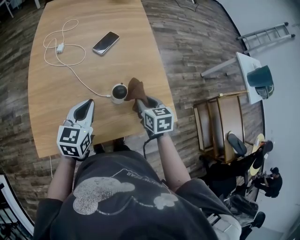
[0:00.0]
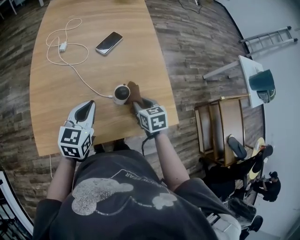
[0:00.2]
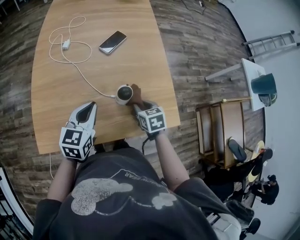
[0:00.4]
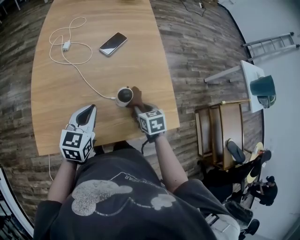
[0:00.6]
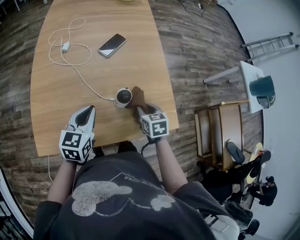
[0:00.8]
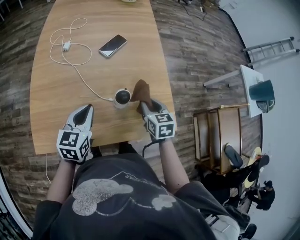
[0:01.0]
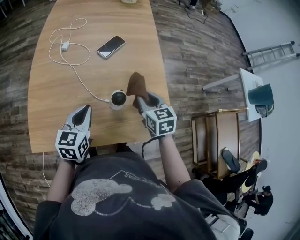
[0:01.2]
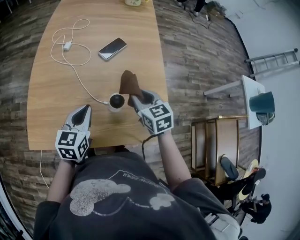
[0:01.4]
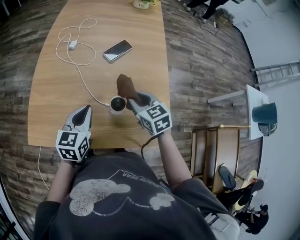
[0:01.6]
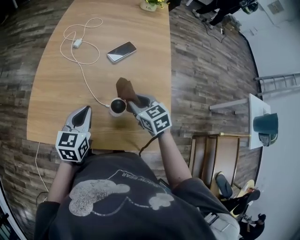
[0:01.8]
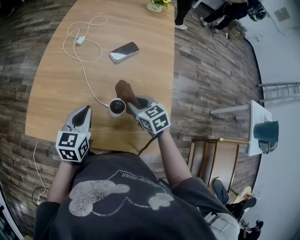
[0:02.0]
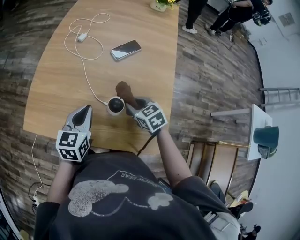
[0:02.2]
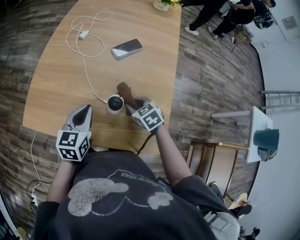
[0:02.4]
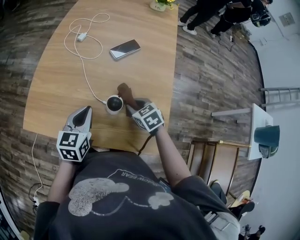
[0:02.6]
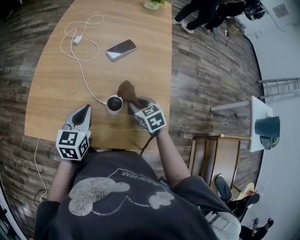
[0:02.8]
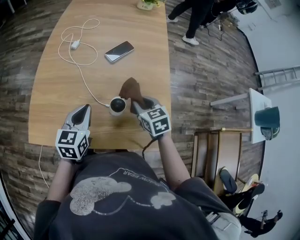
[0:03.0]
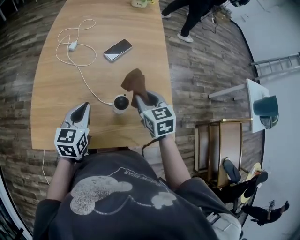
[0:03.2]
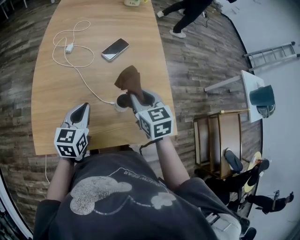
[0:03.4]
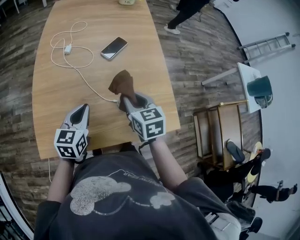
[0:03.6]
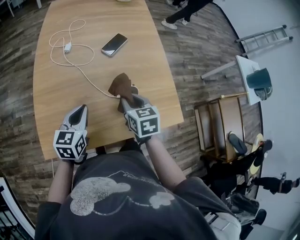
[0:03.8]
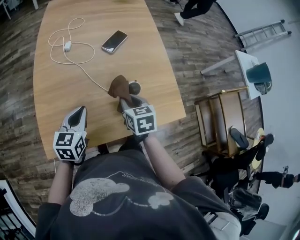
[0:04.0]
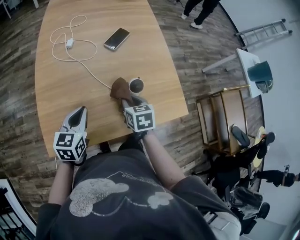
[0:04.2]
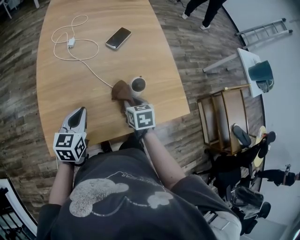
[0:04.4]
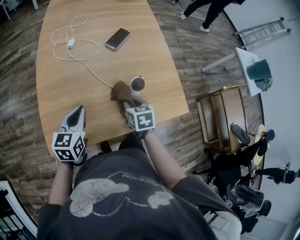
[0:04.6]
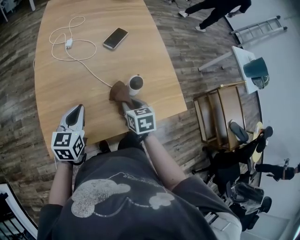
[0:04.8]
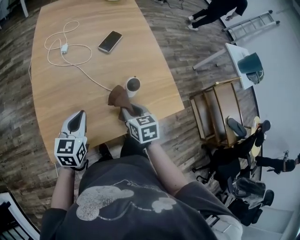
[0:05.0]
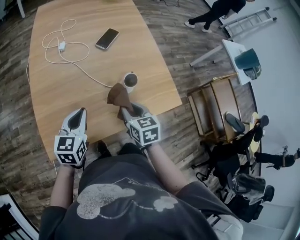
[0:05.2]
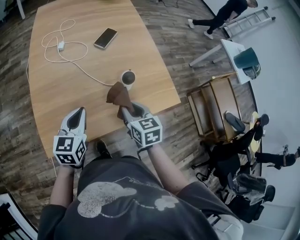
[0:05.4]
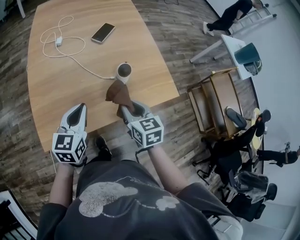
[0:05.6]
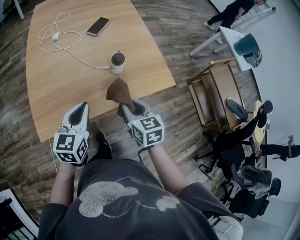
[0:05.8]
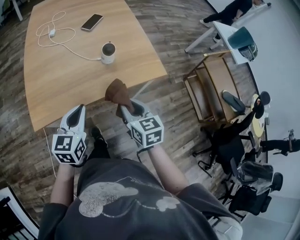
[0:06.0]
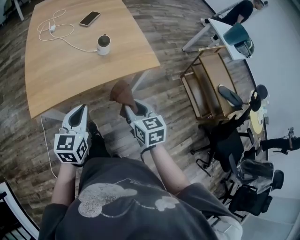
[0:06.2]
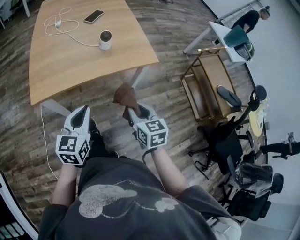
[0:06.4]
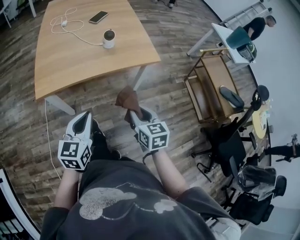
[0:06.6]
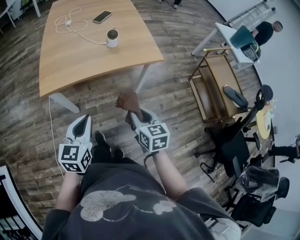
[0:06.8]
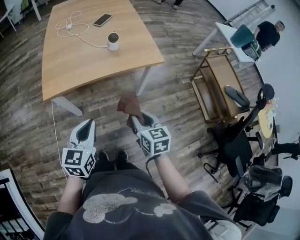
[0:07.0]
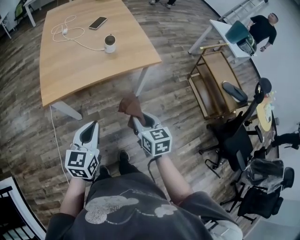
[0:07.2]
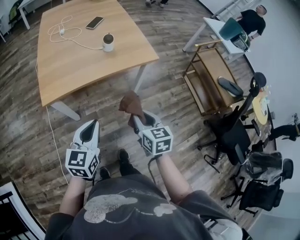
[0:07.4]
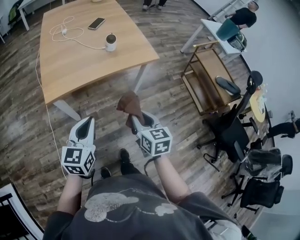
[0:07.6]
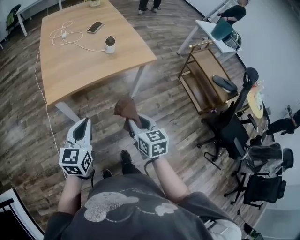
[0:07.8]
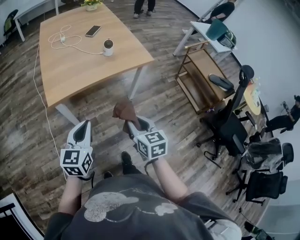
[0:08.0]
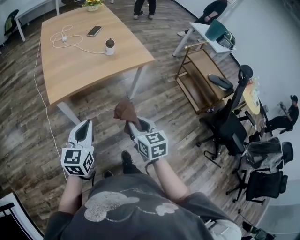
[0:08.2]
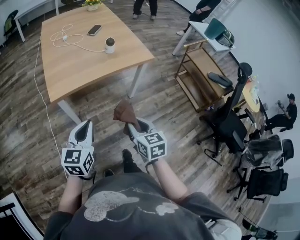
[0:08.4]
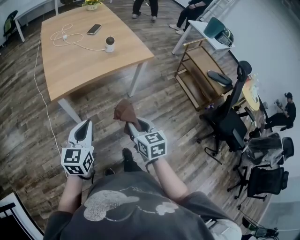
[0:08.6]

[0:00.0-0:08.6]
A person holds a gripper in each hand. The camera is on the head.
0:00.0 to 0:01.4: The right gripper travels forward by about 5 cm, and turns by about 20 degrees.
0:01.4 to 0:02.8: The right gripper travels downward by roughly 10 cm.
0:02.8 to 0:04.4: The right gripper goes upward and returns, roughly 15 cm each way, and turns by some 40 degrees, while the left gripper changes place by approximately 15 cm.
0:04.4 to 0:05.8: The right gripper moves backward and upward, about 15 cm, while the left gripper moves backward and to the right, about 10 cm.
0:05.8 to 0:07.2: Both grippers move backward, about 25 cm.
0:07.2 to 0:08.6: The right gripper heads backward and to the left, covering some 15 cm; the left gripper moves to the left and backward, some 10 cm.

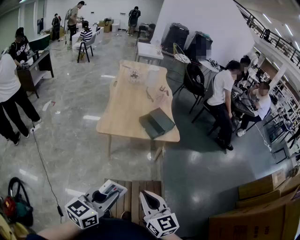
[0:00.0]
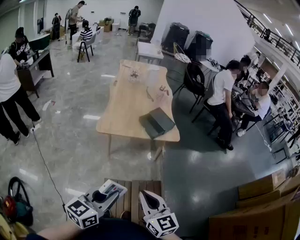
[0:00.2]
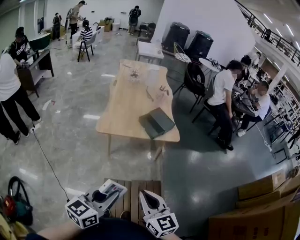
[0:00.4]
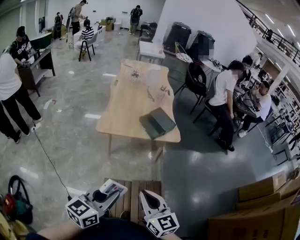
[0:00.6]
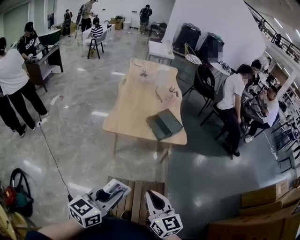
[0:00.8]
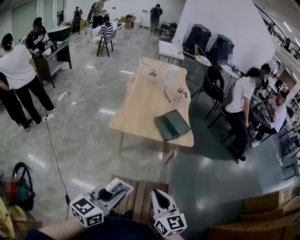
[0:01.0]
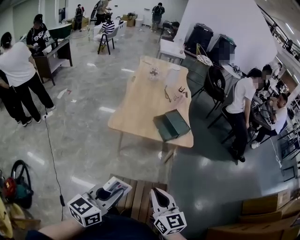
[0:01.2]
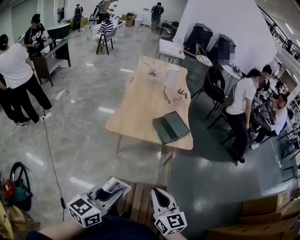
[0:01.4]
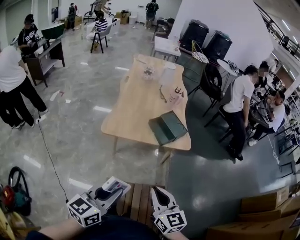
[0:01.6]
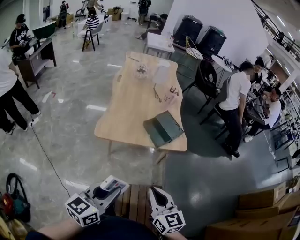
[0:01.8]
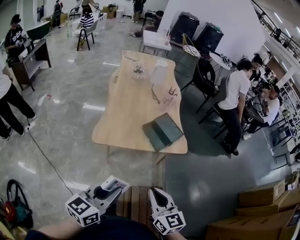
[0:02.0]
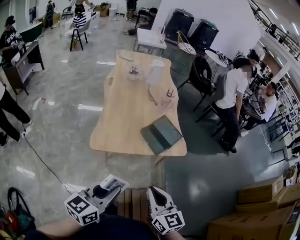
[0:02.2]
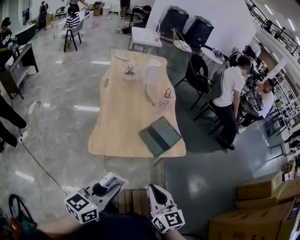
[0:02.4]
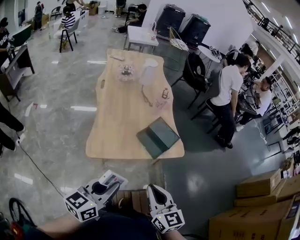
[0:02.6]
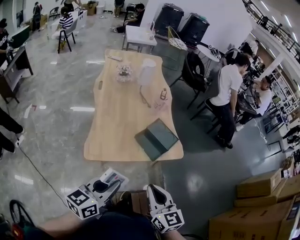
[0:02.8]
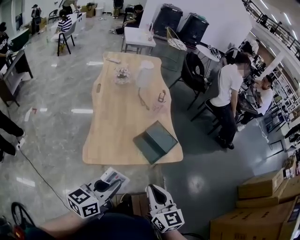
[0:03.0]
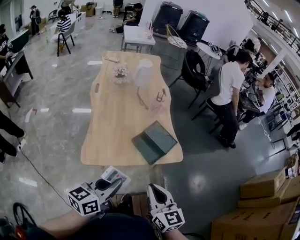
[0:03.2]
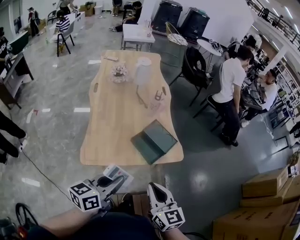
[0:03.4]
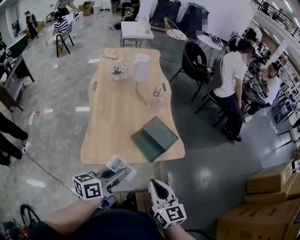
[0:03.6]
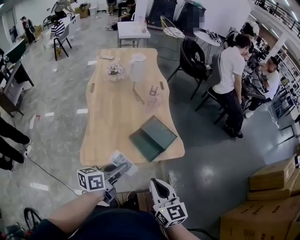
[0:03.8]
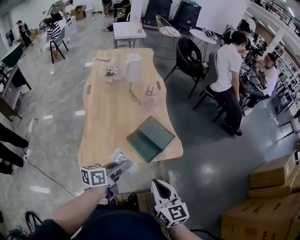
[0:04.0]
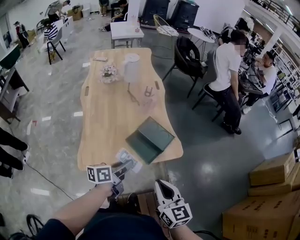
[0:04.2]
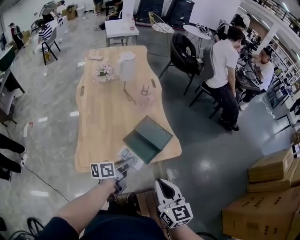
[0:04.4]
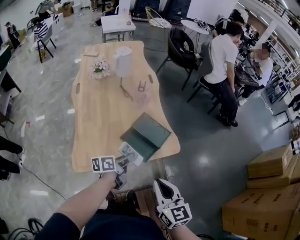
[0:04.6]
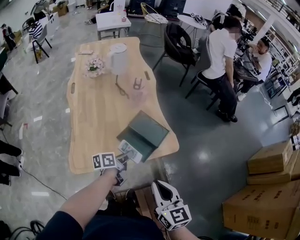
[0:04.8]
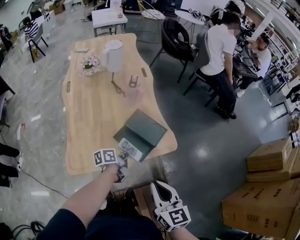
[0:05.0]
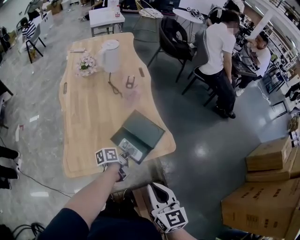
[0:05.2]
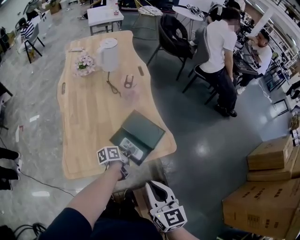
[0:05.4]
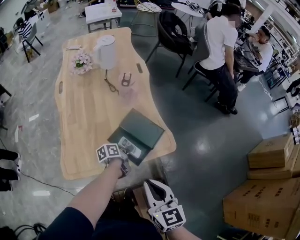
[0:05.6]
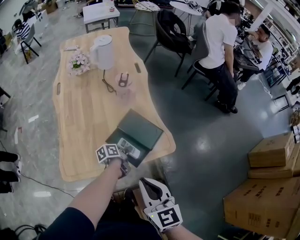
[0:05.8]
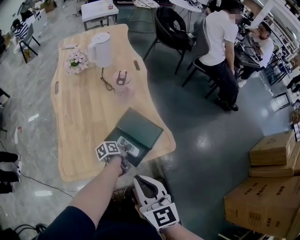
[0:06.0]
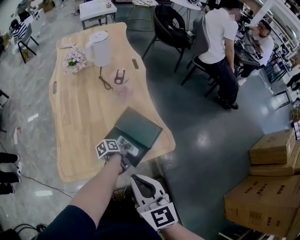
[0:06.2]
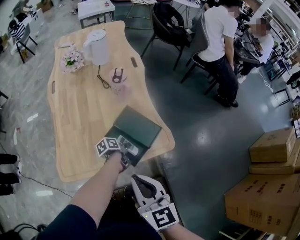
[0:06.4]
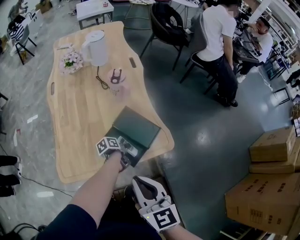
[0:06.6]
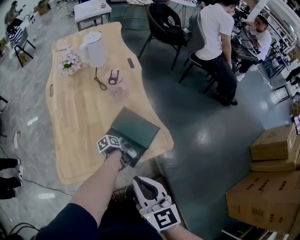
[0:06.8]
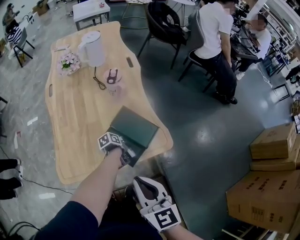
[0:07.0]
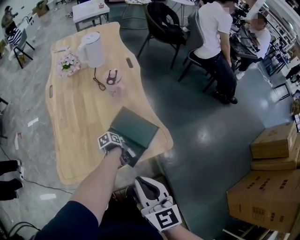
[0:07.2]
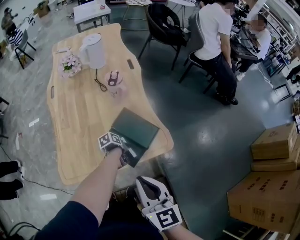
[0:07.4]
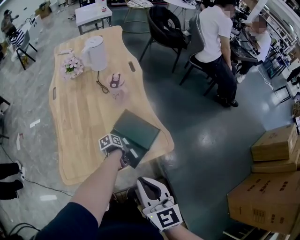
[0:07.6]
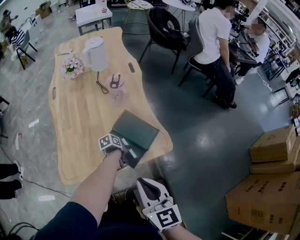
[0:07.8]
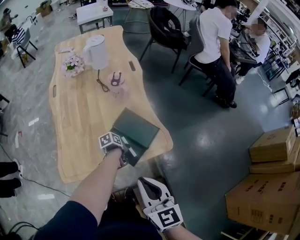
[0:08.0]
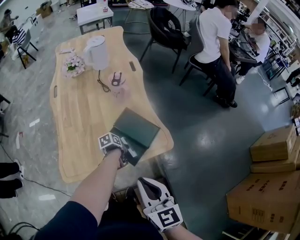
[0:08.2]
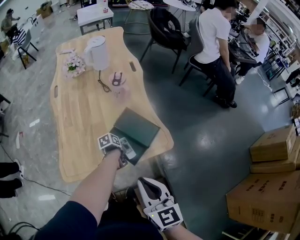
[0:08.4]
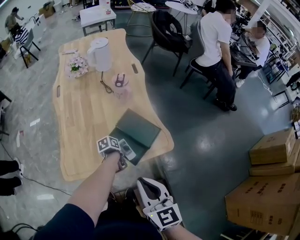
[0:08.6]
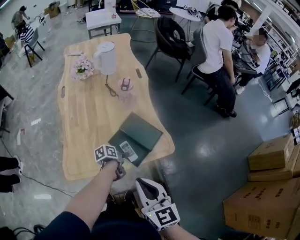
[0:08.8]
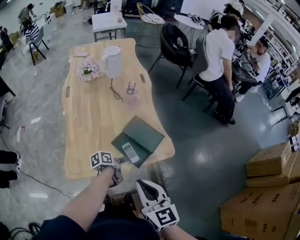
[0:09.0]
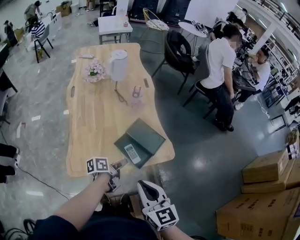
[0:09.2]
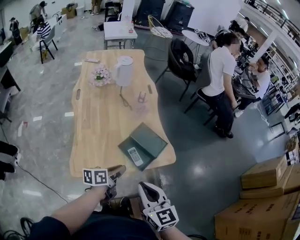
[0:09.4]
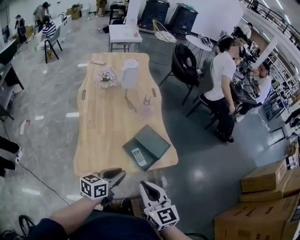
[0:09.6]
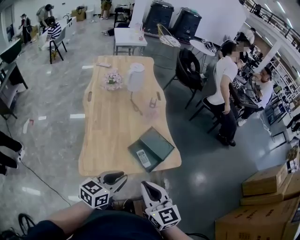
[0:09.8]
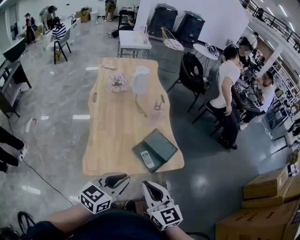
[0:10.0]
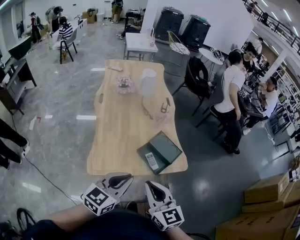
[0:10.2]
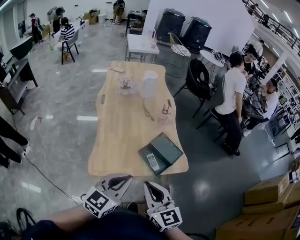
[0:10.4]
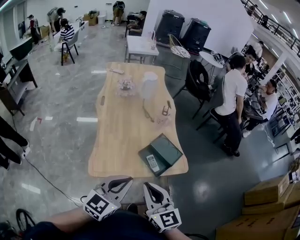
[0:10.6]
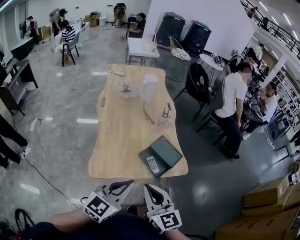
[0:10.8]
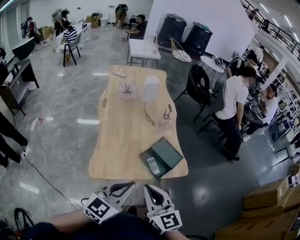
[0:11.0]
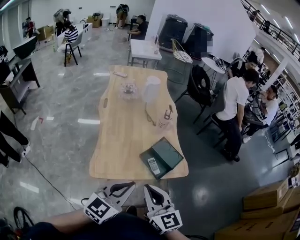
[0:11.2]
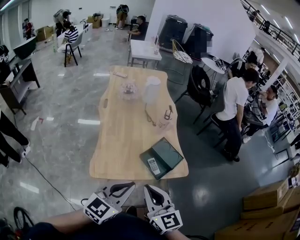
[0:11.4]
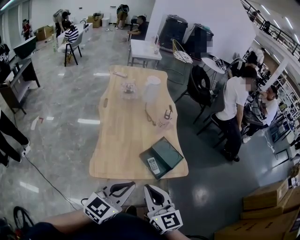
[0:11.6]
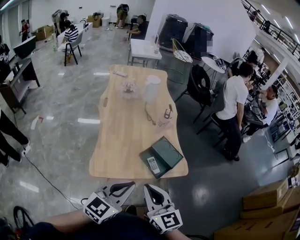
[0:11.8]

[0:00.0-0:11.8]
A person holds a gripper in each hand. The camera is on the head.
0:00.0 to 0:01.4: Both grippers travel together forward, approximately 10 cm.
0:01.4 to 0:03.0: Both grippers move forward, approximately 30 cm.
0:03.0 to 0:04.4: The left gripper travels forward, downward and to the right by approximately 25 cm, and rotates roughly 30 degrees. Meanwhile the right gripper is displaced forward and to the right by some 15 cm.
0:04.4 to 0:06.0: The right gripper shifts about 10 cm forward and downward, while the left gripper heads downward and forward, covering roughly 25 cm, and changes its angle by approximately 30 degrees.
0:06.0 to 0:07.4: The left gripper swivels some 20 degrees.
0:07.4 to 0:08.8: The left gripper is displaced upward and backward by approximately 10 cm, while the right gripper changes place by approximately 5 cm.
0:08.8 to 0:10.4: The right gripper moves to the left, upward and backward, approximately 20 cm. The left gripper travels upward and backward by approximately 40 cm, rotates around the line of its fingers by approximately 70 degrees, clockwise from behind, and closes up.
0:10.4 to 0:11.8: The grippers make only small movements.

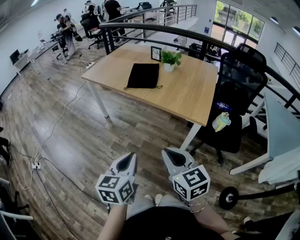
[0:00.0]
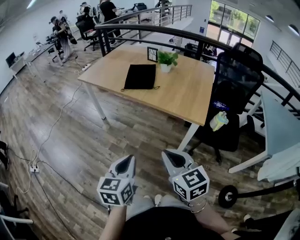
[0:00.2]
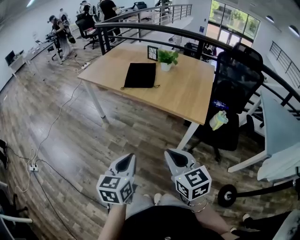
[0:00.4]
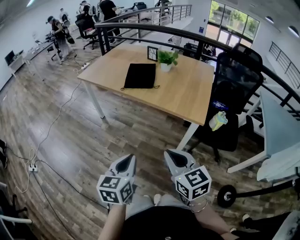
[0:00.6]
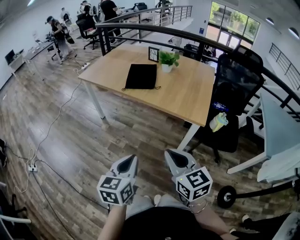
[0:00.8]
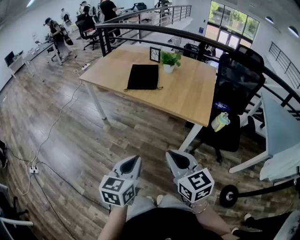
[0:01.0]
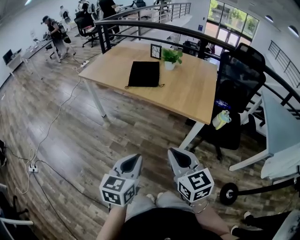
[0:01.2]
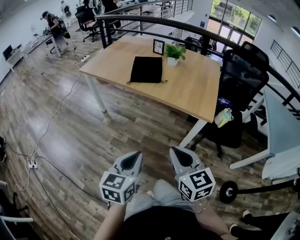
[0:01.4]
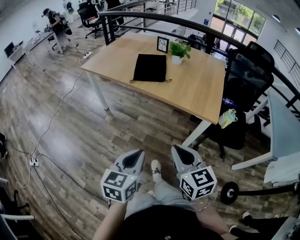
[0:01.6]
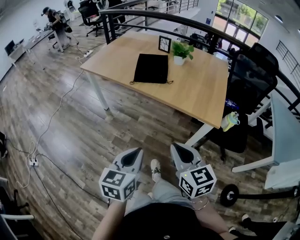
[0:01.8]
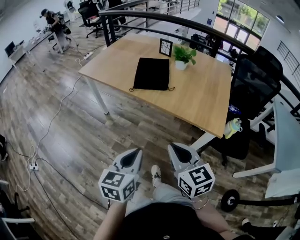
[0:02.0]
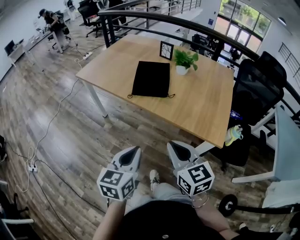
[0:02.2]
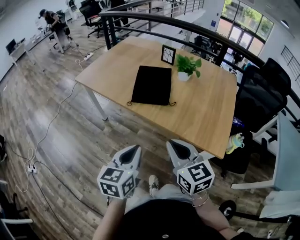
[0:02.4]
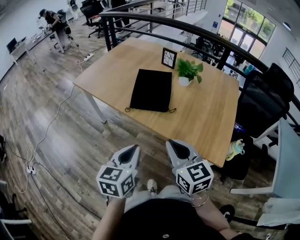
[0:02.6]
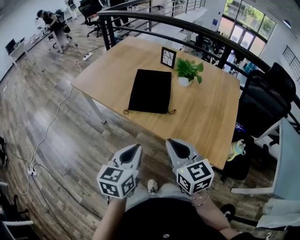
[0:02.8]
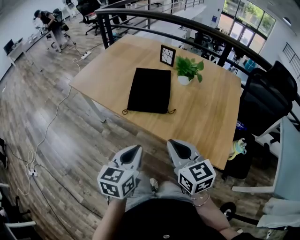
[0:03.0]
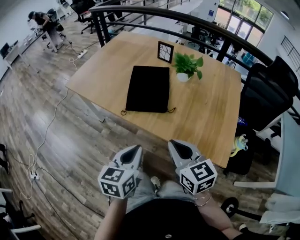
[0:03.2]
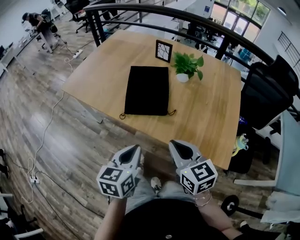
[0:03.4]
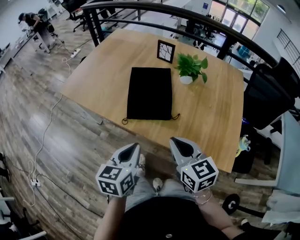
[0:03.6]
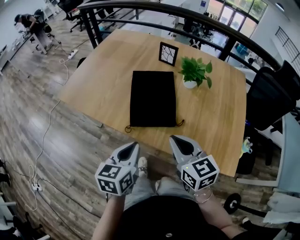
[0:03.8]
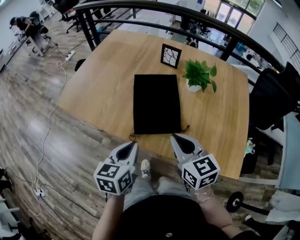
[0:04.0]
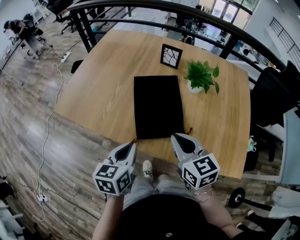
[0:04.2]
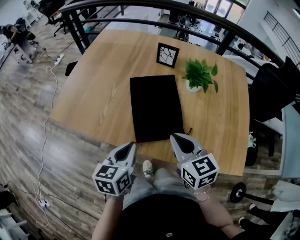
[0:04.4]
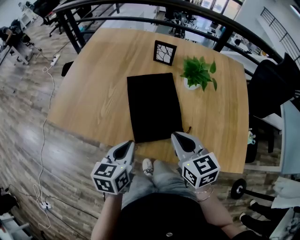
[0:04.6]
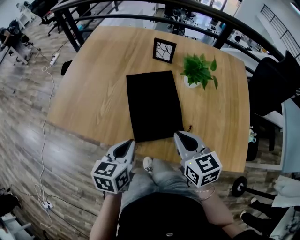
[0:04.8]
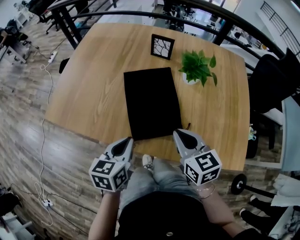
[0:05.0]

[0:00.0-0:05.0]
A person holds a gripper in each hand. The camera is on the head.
0:00.0 to 0:01.6: The right gripper shifts by about 5 cm. Meanwhile the left gripper moves about 5 cm.
0:01.6 to 0:03.4: Both grippers move forward, approximately 35 cm.
0:03.4 to 0:05.0: The left gripper goes roughly 25 cm forward and to the left, while the right gripper moves forward, about 20 cm.
